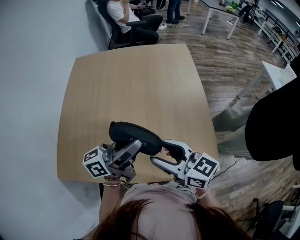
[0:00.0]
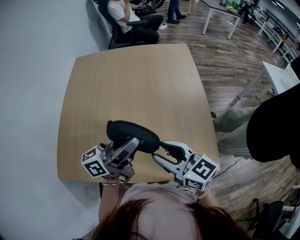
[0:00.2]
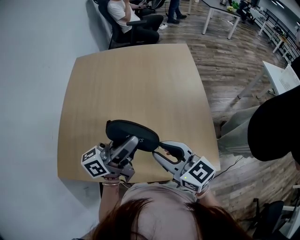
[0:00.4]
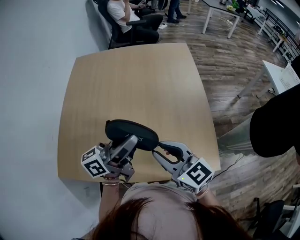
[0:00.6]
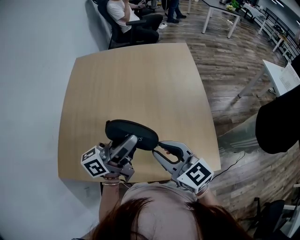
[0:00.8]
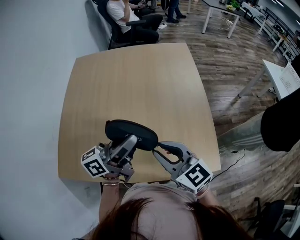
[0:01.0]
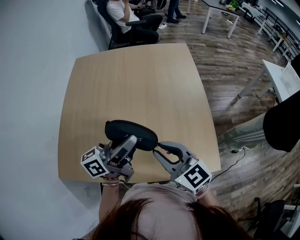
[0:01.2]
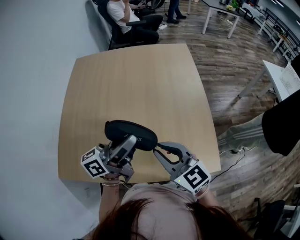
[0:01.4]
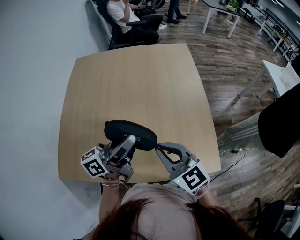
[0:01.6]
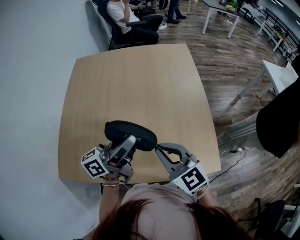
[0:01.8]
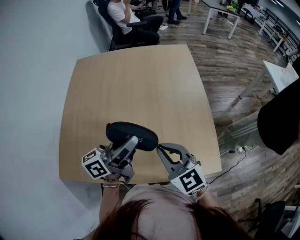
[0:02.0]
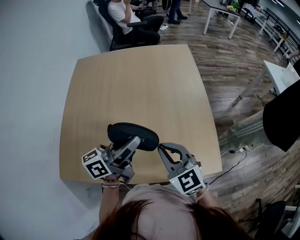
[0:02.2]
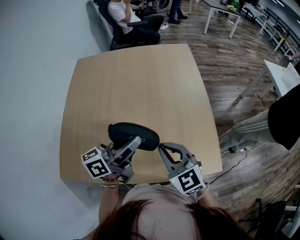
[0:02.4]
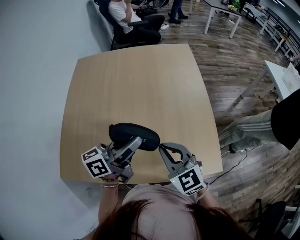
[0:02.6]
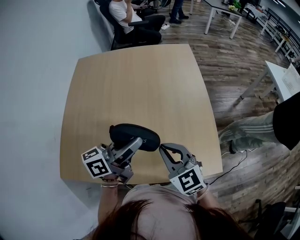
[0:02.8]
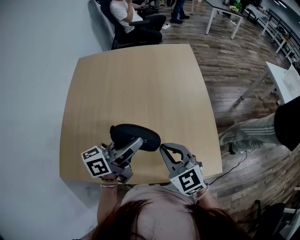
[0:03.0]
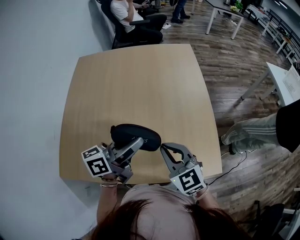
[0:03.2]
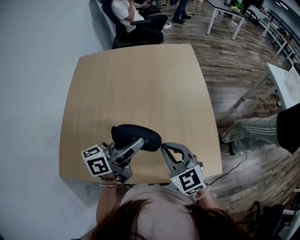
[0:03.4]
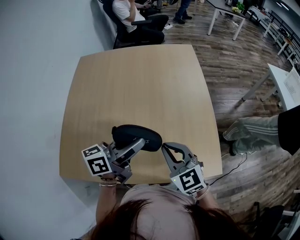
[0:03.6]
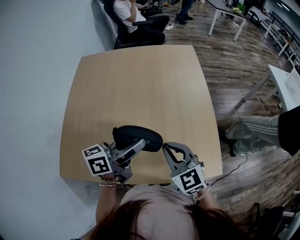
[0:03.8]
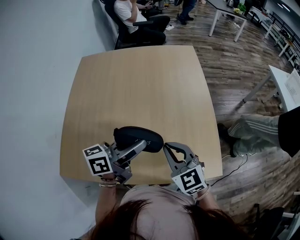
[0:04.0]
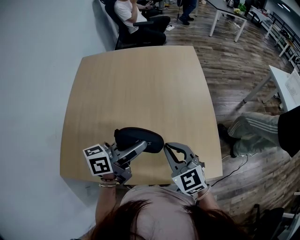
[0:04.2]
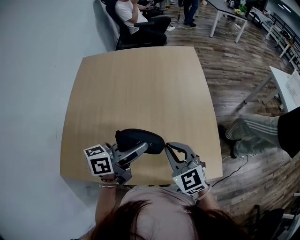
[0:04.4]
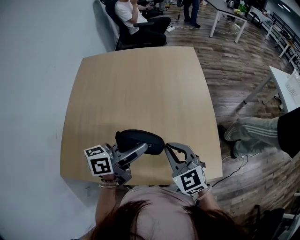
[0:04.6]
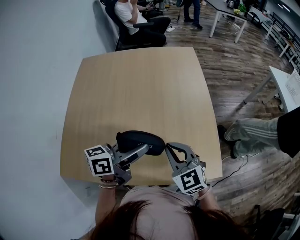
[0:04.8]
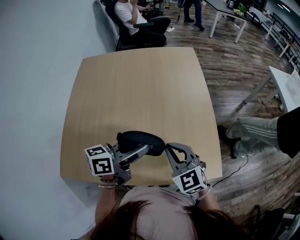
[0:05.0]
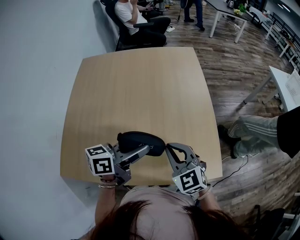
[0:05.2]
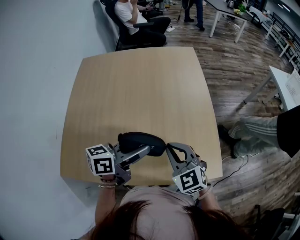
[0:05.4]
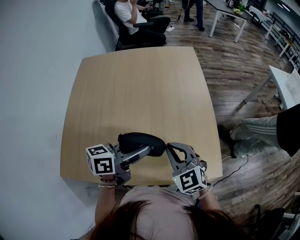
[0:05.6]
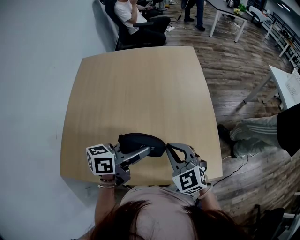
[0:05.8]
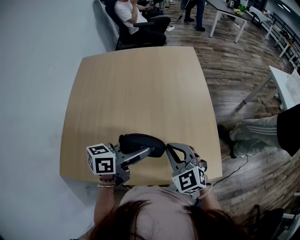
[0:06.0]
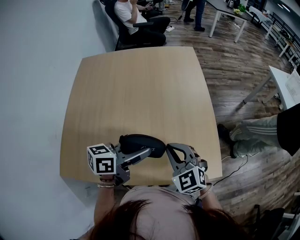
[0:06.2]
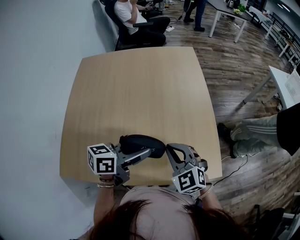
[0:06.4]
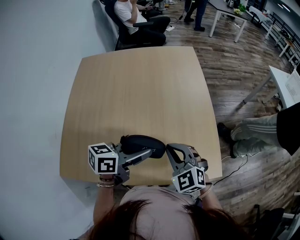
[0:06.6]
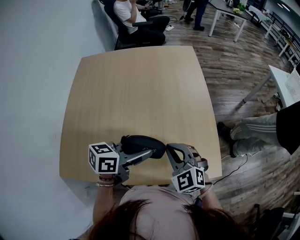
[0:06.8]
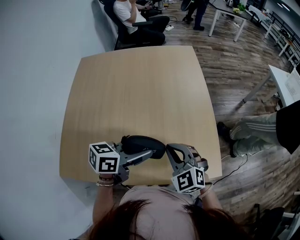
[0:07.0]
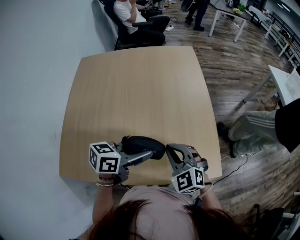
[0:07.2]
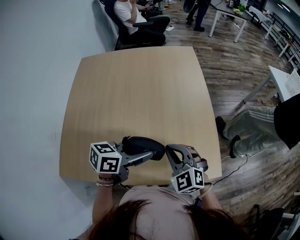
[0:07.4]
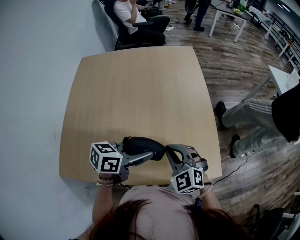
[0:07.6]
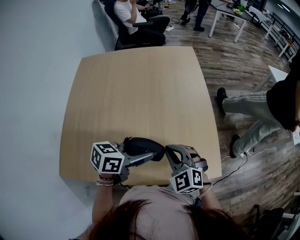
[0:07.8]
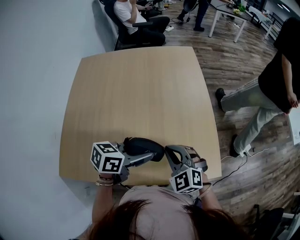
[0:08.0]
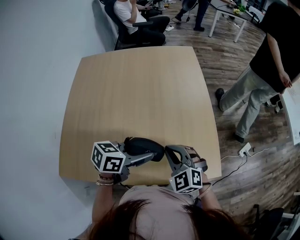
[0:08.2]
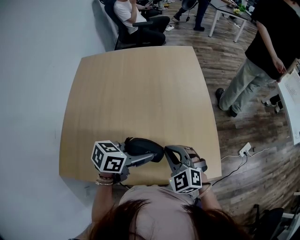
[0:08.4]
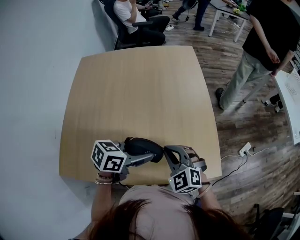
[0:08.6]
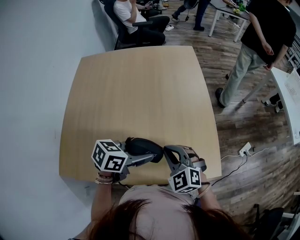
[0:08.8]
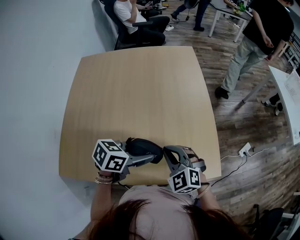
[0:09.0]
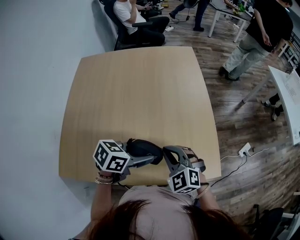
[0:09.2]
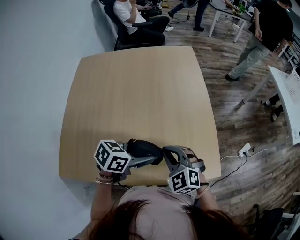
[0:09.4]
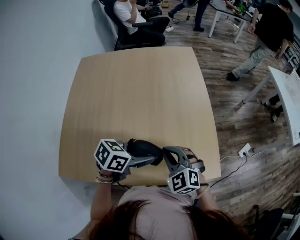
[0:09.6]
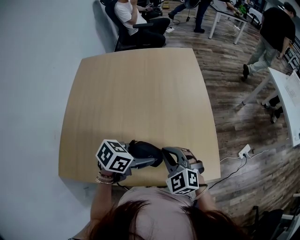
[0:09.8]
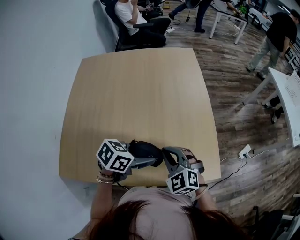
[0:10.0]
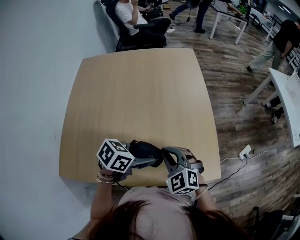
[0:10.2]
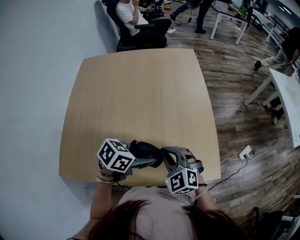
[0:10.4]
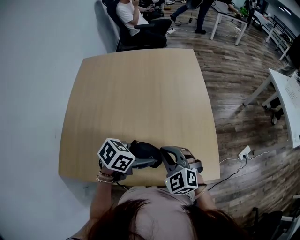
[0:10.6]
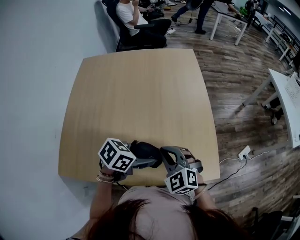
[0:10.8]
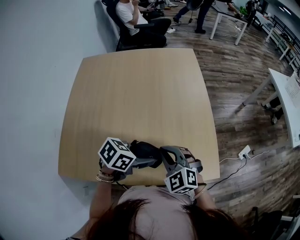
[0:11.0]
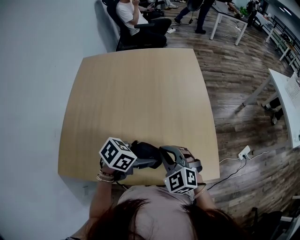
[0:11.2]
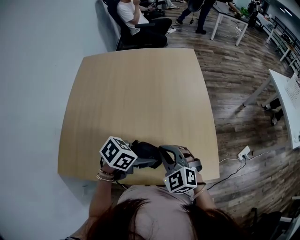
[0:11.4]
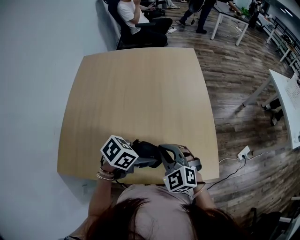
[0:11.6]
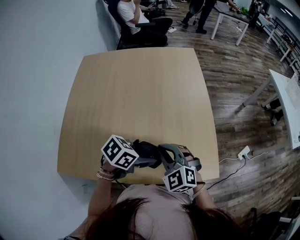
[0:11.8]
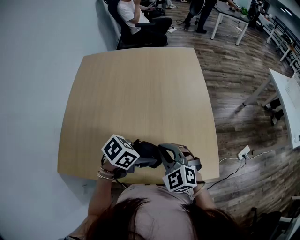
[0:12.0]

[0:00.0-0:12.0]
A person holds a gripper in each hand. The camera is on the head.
0:00.0 to 0:01.6: The right gripper rotates roughly 30 degrees, and closes its fingers.
0:01.6 to 0:03.0: The grippers move only a little.
0:03.0 to 0:06.0: The grippers make only small movements.
0:06.0 to 0:07.6: The grippers make only small movements.
0:07.6 to 0:10.4: There are only small adjustments of the grippers.
0:10.4 to 0:12.0: The grippers make only small movements.

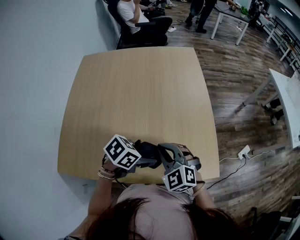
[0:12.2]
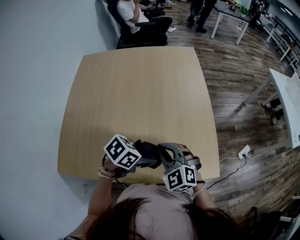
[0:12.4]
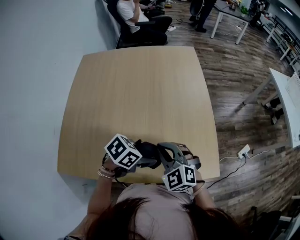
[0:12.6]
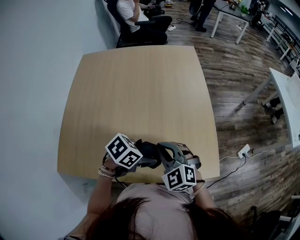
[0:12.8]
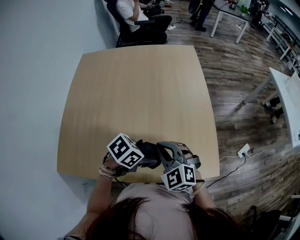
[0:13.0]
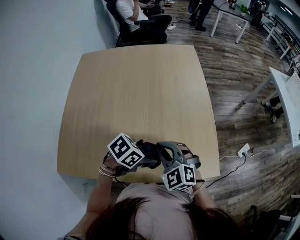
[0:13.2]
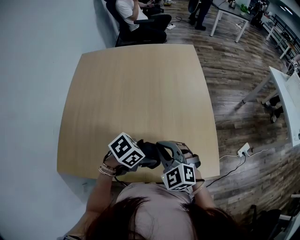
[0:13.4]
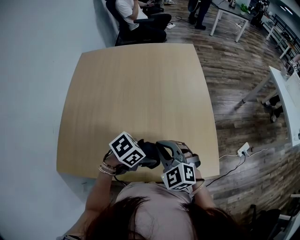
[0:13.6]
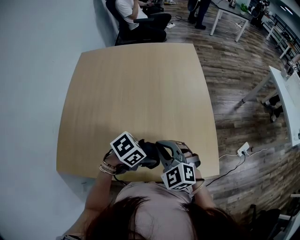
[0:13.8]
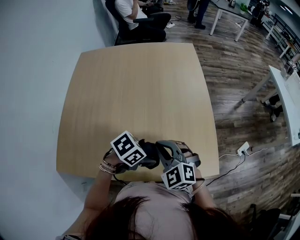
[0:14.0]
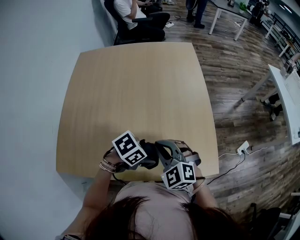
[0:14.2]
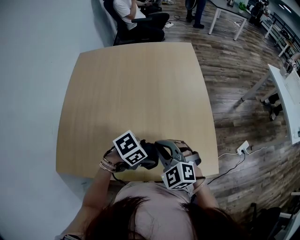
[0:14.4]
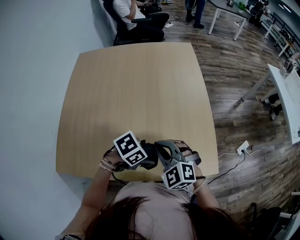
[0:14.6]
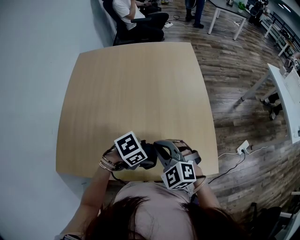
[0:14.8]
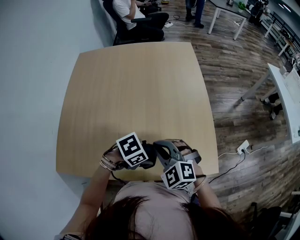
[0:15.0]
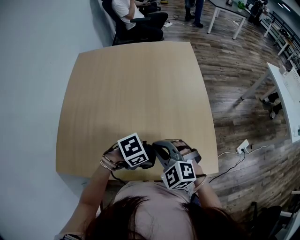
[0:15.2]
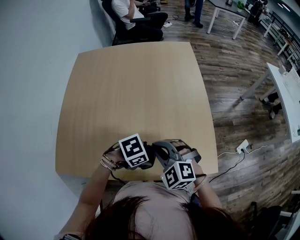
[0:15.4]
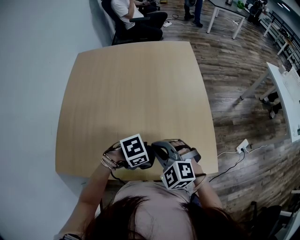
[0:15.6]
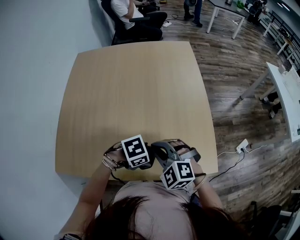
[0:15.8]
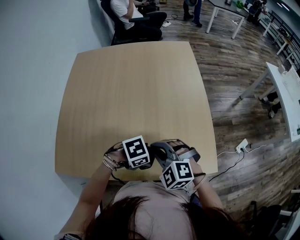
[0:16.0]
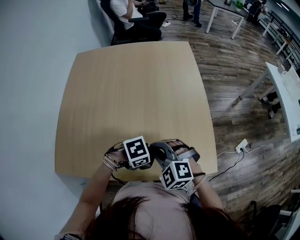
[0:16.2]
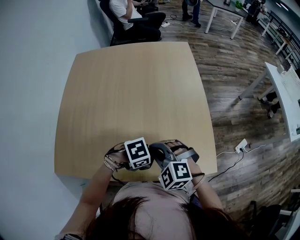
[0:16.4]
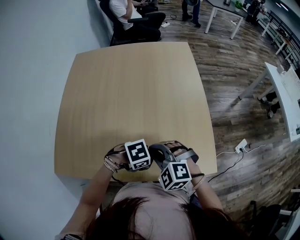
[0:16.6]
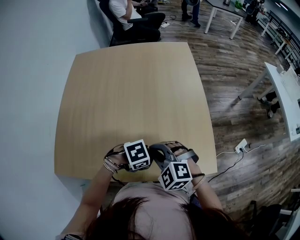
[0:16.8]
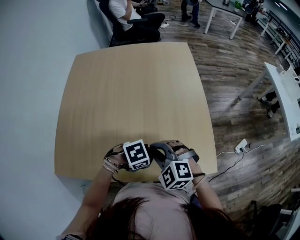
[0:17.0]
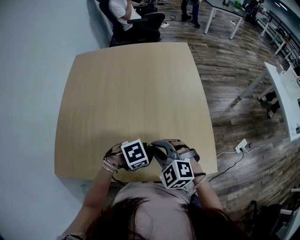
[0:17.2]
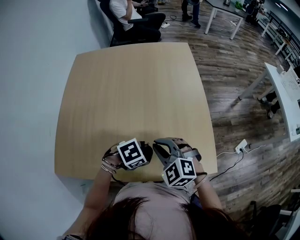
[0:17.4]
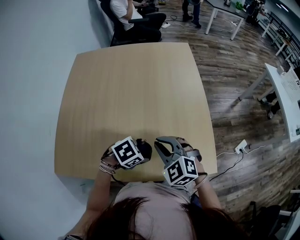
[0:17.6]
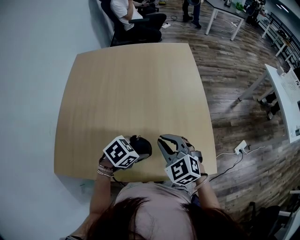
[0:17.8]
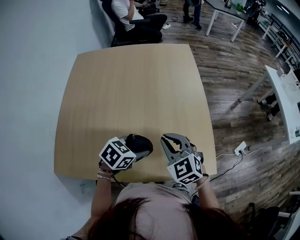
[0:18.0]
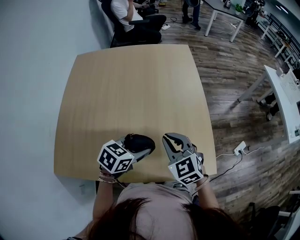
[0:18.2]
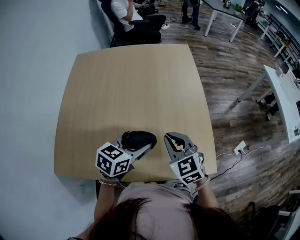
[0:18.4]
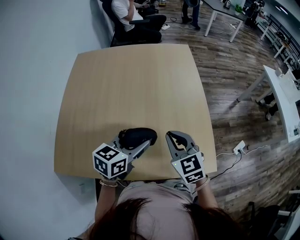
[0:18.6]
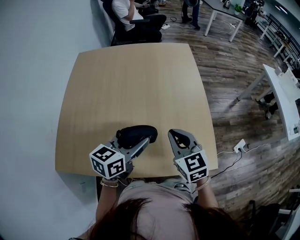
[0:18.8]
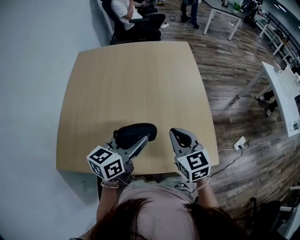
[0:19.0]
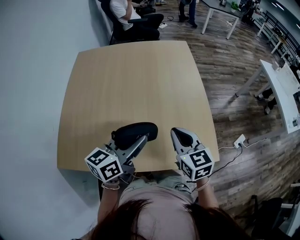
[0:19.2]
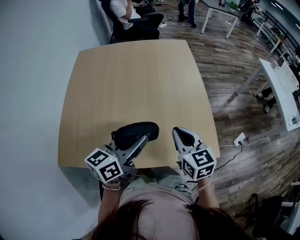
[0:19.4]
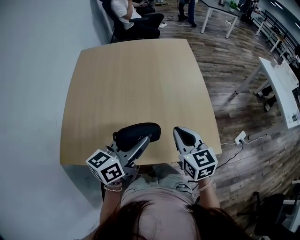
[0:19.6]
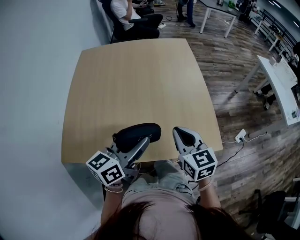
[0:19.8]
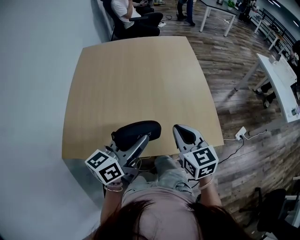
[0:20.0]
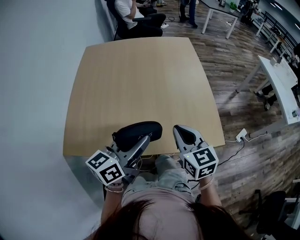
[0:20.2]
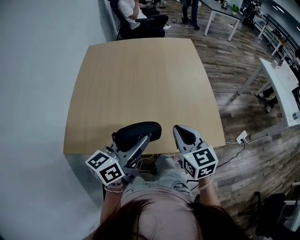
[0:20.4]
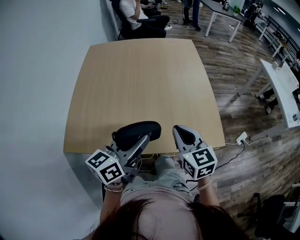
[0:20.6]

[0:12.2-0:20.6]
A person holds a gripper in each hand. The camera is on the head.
0:12.2 to 0:13.6: There are only small adjustments of the grippers.
0:13.6 to 0:15.0: The grippers move only a little.
0:15.0 to 0:16.4: There are only small adjustments of the grippers.
0:16.4 to 0:17.8: The left gripper moves about 10 cm, and changes its angle by some 30 degrees, while the right gripper changes place by roughly 5 cm, and swivels approximately 20 degrees.
0:17.8 to 0:19.2: The right gripper ends up approximately 5 cm from where it was, and swivels approximately 40 degrees; the left gripper shifts approximately 15 cm upward, and points its fingers roughly 50 degrees further upward.
0:19.2 to 0:20.6: The two grippers go about 10 cm backward.

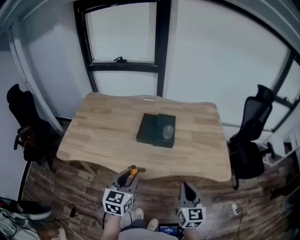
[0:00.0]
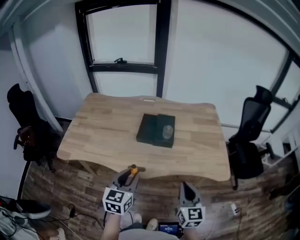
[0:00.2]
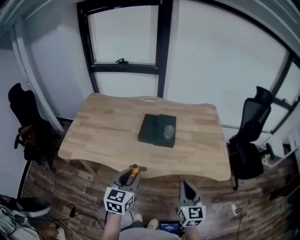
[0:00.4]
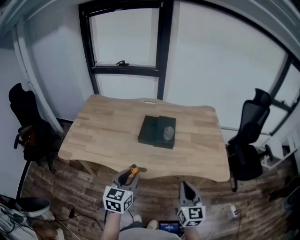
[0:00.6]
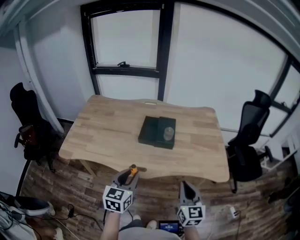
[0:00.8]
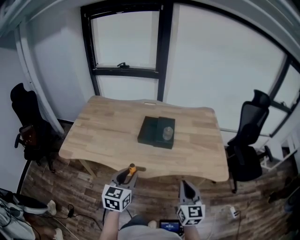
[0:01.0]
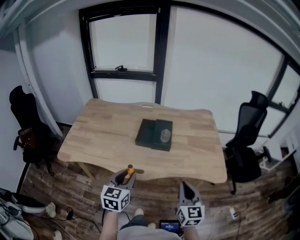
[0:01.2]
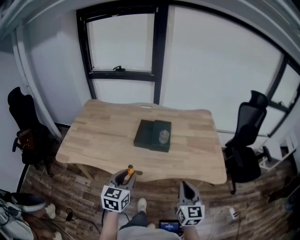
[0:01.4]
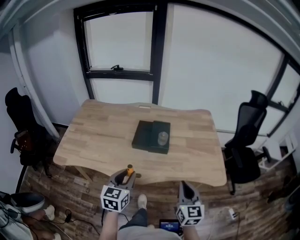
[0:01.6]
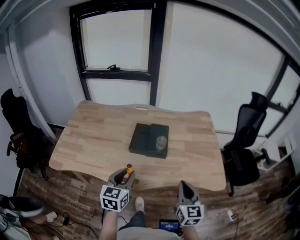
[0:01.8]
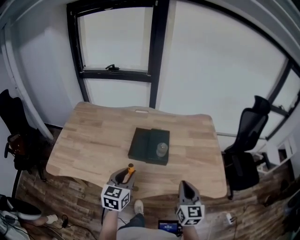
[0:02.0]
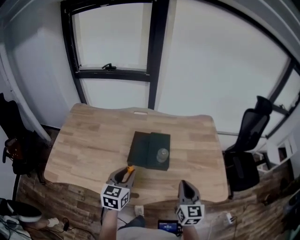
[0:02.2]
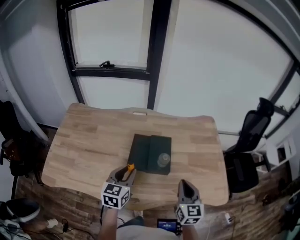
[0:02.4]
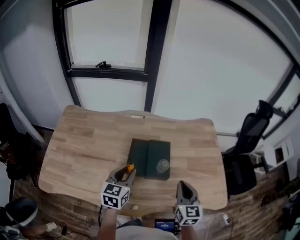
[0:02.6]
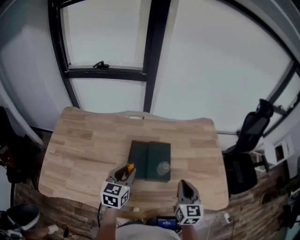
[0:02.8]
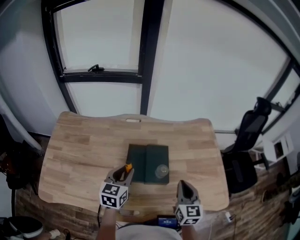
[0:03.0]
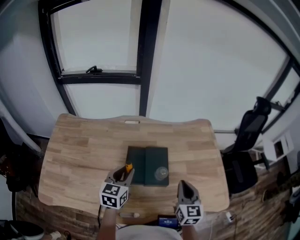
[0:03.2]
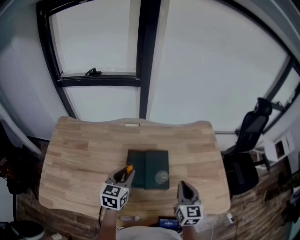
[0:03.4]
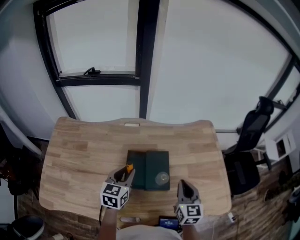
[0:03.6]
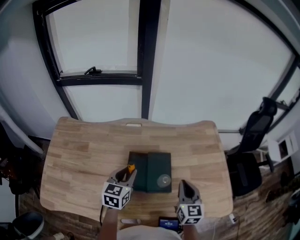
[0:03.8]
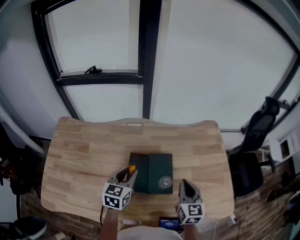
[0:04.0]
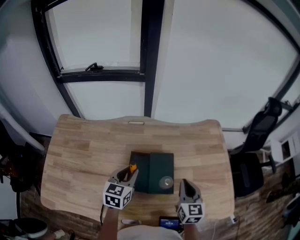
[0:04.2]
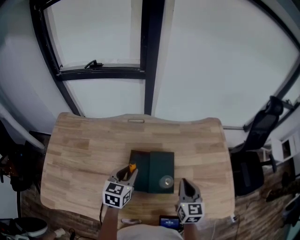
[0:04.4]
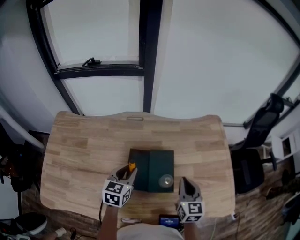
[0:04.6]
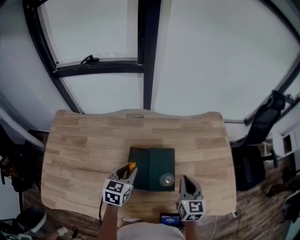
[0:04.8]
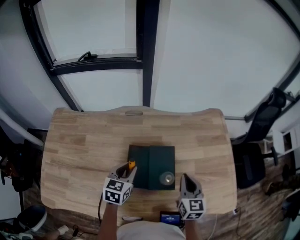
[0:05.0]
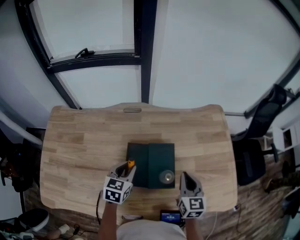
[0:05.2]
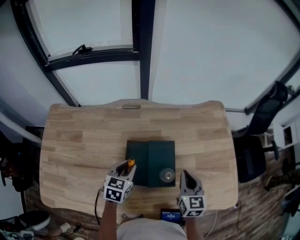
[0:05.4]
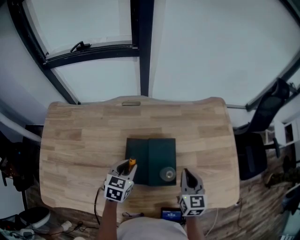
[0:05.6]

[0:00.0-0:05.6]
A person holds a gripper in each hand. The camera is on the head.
0:00.0 to 0:01.4: The grippers make only small movements.
0:01.4 to 0:02.8: Both grippers move forward, roughly 25 cm.
0:02.8 to 0:04.2: The grippers both shift forward by some 10 cm.
0:04.2 to 0:05.6: The left gripper shifts roughly 10 cm downward. Meanwhile the right gripper moves downward, about 5 cm.
